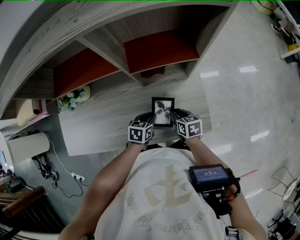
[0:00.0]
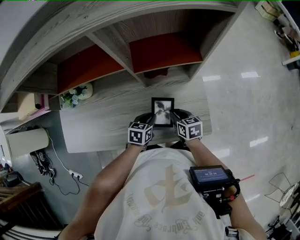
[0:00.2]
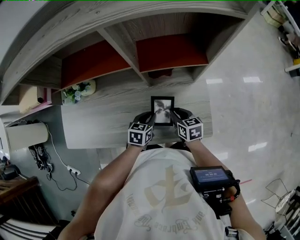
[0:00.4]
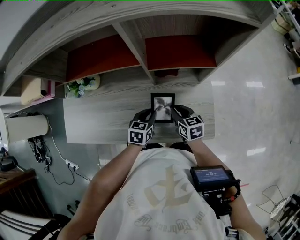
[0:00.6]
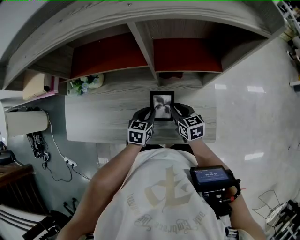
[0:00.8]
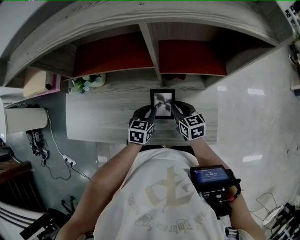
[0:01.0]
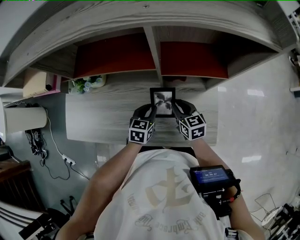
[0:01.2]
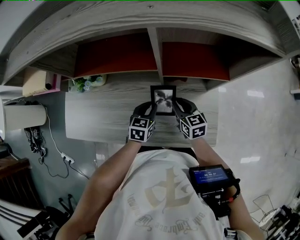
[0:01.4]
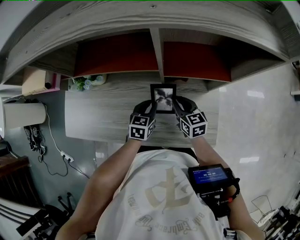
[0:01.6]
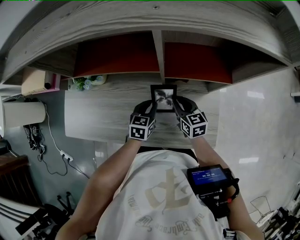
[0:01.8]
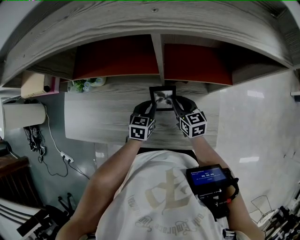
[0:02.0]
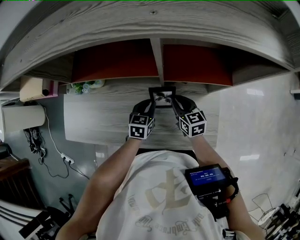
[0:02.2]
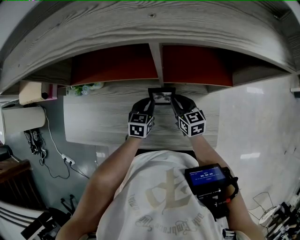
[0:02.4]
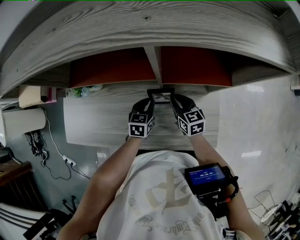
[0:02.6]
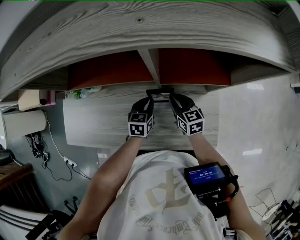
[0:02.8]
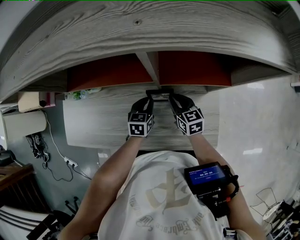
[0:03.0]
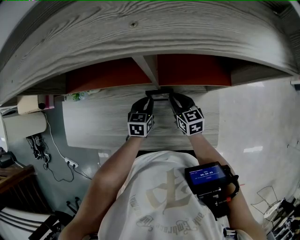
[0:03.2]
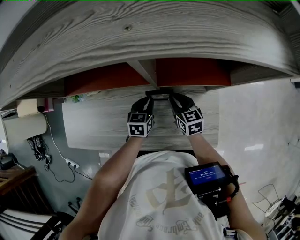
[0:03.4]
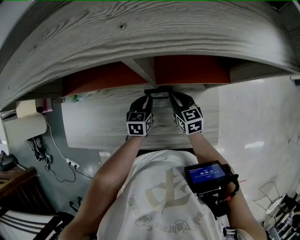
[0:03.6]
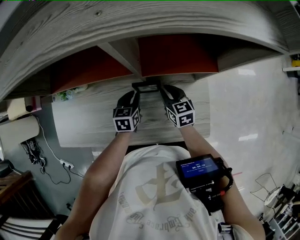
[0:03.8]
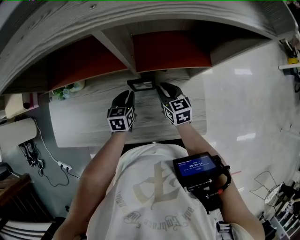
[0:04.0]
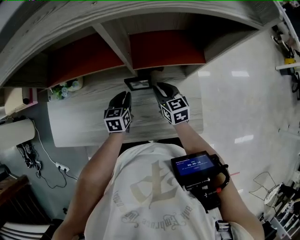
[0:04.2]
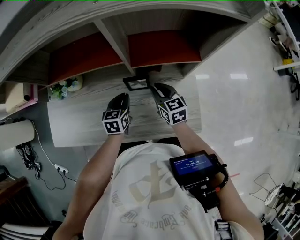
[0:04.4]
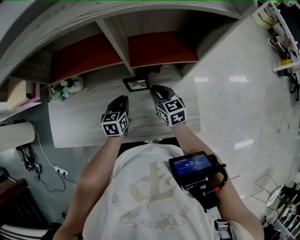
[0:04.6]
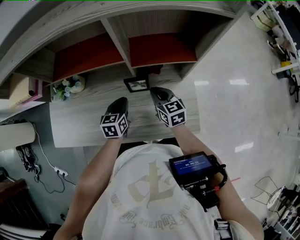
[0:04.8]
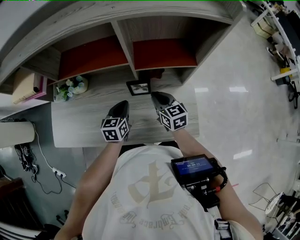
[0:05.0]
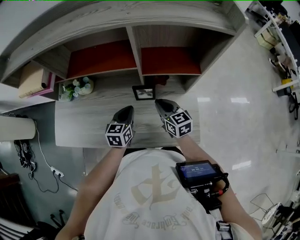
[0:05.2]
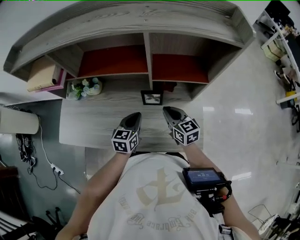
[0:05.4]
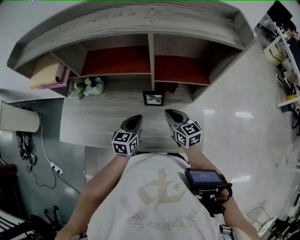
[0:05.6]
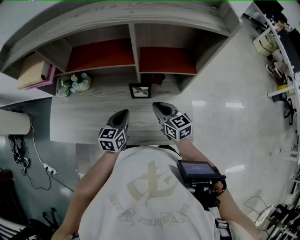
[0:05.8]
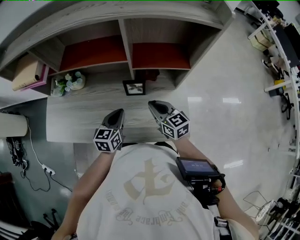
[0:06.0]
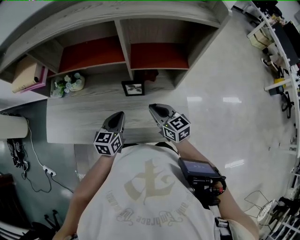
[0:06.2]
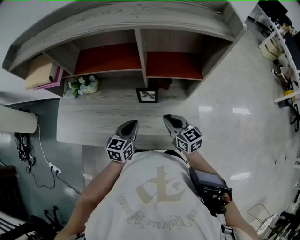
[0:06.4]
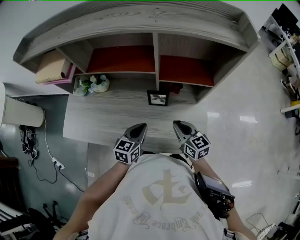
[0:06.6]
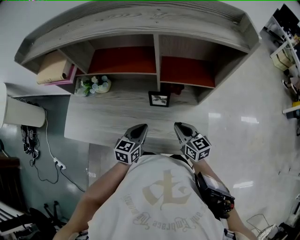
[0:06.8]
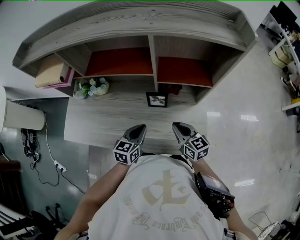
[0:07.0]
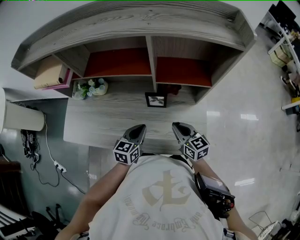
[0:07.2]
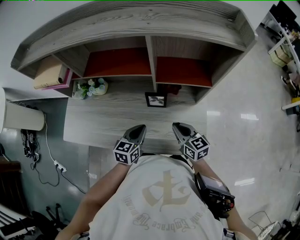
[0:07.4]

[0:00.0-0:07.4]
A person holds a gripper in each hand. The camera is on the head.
0:00.0 to 0:01.4: Both grippers travel together forward, to the left and upward, about 15 cm. The left gripper swivels about 20 degrees. The right gripper turns by about 30 degrees.
0:01.4 to 0:03.0: The left gripper is displaced forward by about 5 cm.
0:03.0 to 0:04.4: The grippers stay close to where they were, moving slightly.
0:04.4 to 0:06.0: The left gripper shifts about 10 cm backward and upward. The right gripper moves backward, upward and to the left, roughly 10 cm.
0:06.0 to 0:07.4: The grippers stay close to where they were, moving slightly.

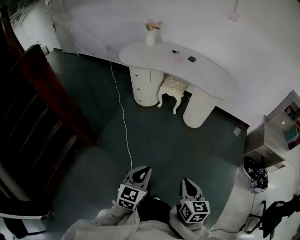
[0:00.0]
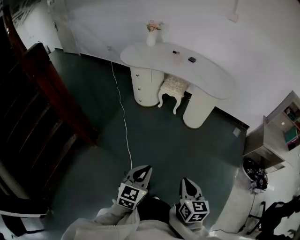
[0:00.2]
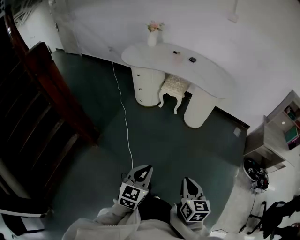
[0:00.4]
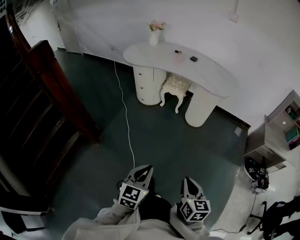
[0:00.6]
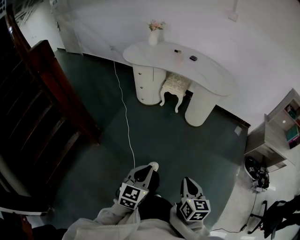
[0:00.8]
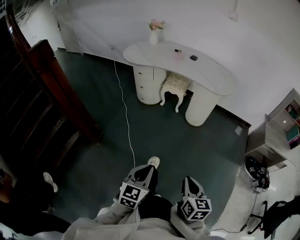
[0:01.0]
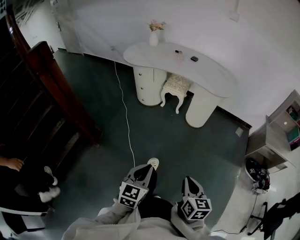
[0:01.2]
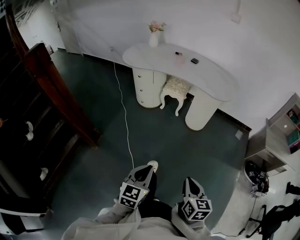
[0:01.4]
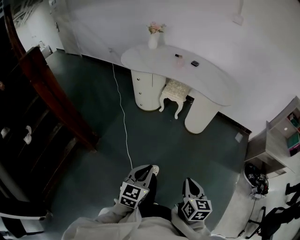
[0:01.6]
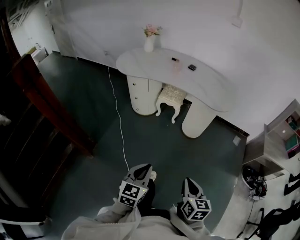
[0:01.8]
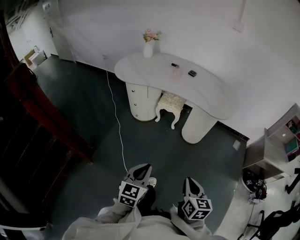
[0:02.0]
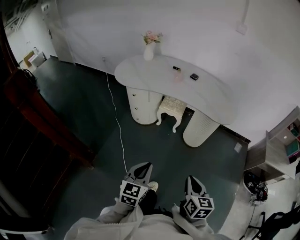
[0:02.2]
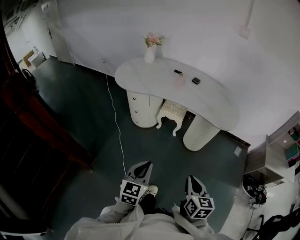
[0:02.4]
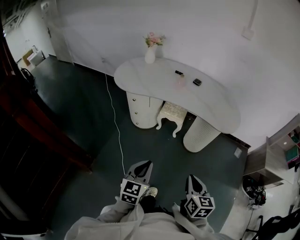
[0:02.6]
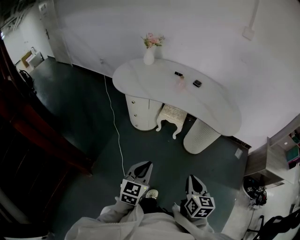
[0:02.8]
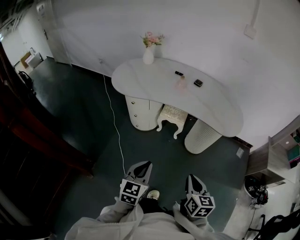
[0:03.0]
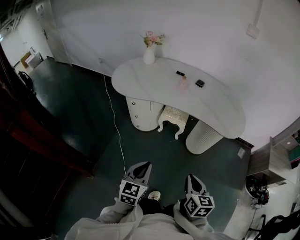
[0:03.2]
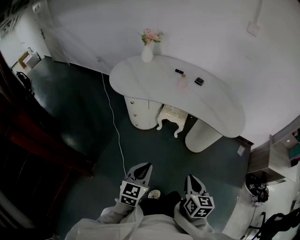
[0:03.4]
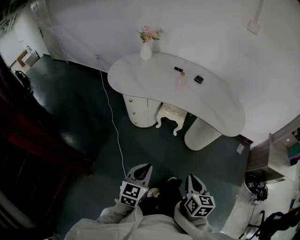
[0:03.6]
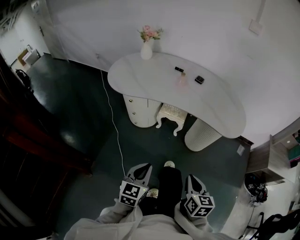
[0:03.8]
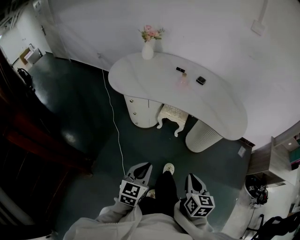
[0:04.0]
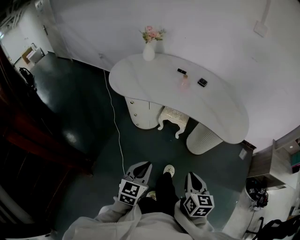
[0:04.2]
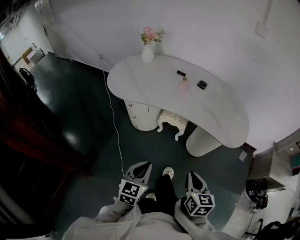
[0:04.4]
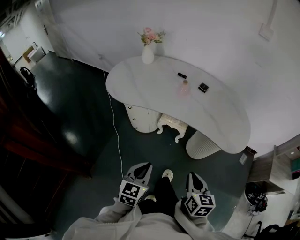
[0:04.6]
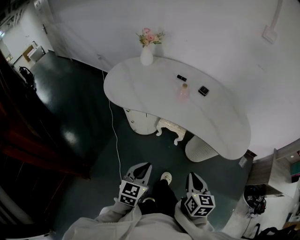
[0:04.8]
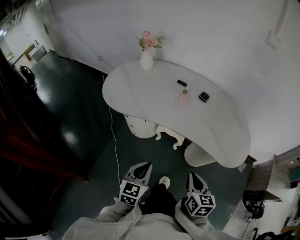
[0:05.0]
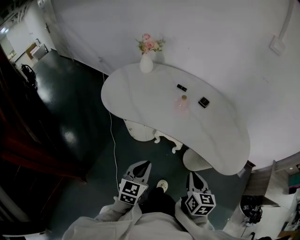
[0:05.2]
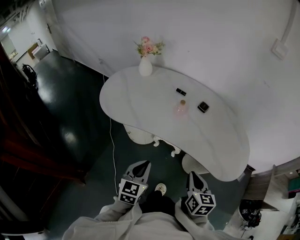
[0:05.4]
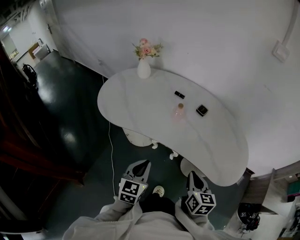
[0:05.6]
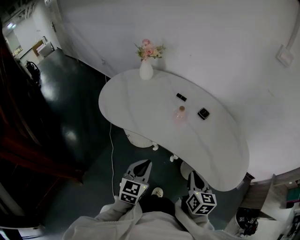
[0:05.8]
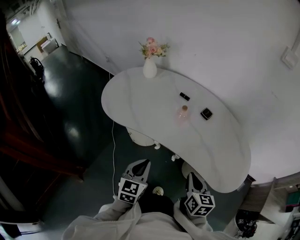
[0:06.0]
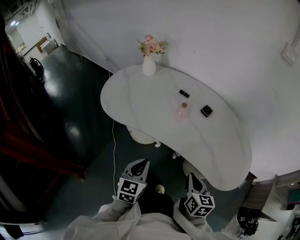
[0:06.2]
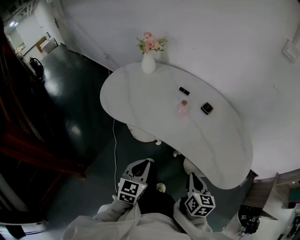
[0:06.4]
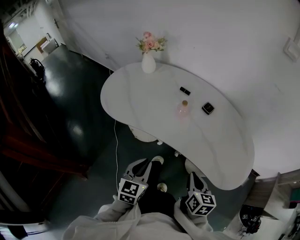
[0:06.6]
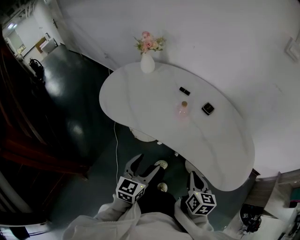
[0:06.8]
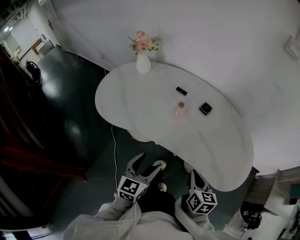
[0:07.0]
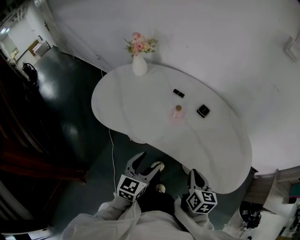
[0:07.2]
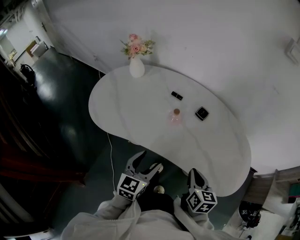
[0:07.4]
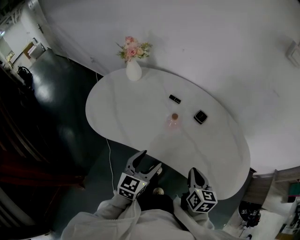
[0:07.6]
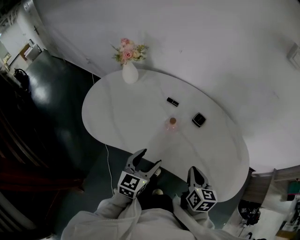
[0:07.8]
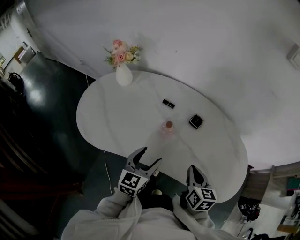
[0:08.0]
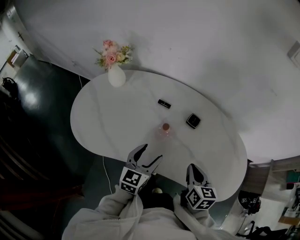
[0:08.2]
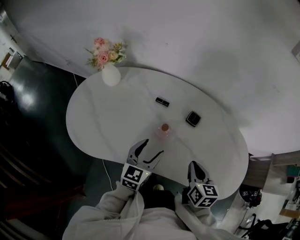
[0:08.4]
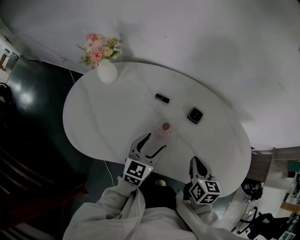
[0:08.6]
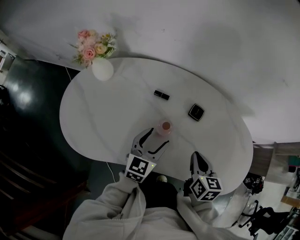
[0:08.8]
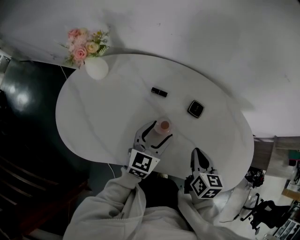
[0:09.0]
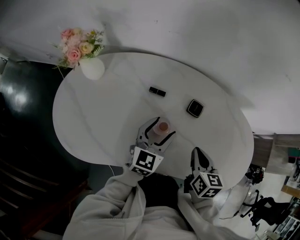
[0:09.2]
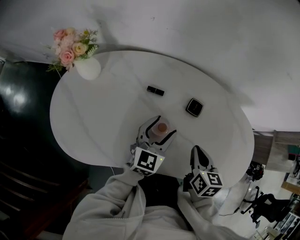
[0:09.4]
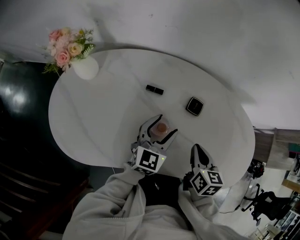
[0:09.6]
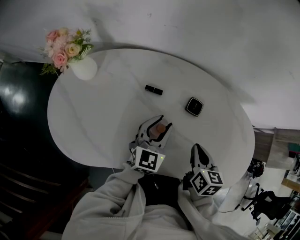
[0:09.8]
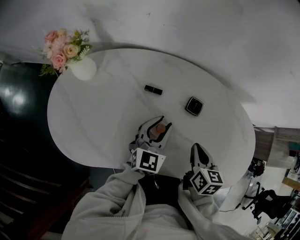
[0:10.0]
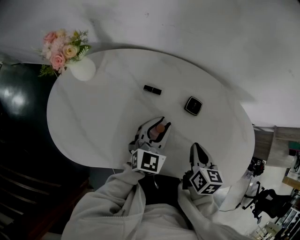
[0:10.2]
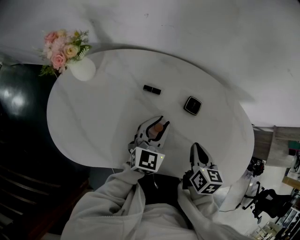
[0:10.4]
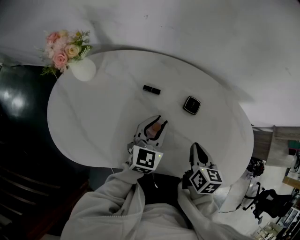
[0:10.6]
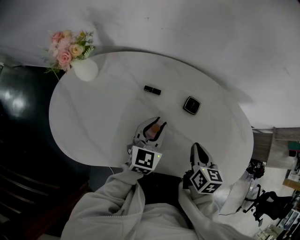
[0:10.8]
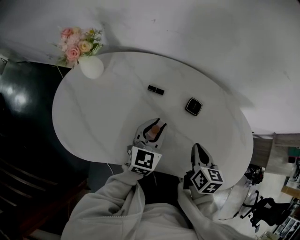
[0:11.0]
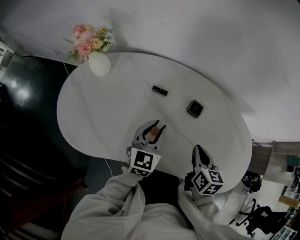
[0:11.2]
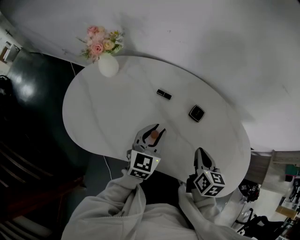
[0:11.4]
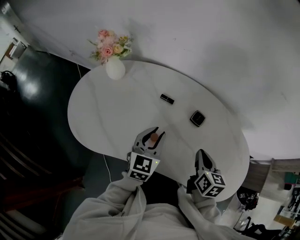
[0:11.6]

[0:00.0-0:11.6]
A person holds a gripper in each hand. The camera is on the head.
0:00.0 to 0:01.4: The grippers make only small movements.
0:01.4 to 0:02.8: The grippers both shift forward by roughly 30 cm.
0:02.8 to 0:04.4: Both grippers travel together forward, approximately 10 cm.
0:04.4 to 0:05.8: The grippers both shift forward by approximately 25 cm.
0:05.8 to 0:07.2: The left gripper is displaced forward by some 5 cm, and opens.
0:07.2 to 0:08.8: The two grippers go approximately 20 cm forward.
0:08.8 to 0:10.2: The left gripper moves forward, about 5 cm, and closes.
0:10.2 to 0:11.6: The left gripper travels backward and upward by approximately 10 cm.

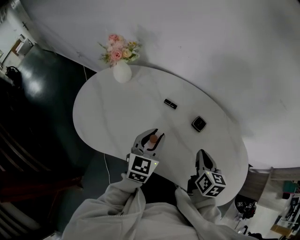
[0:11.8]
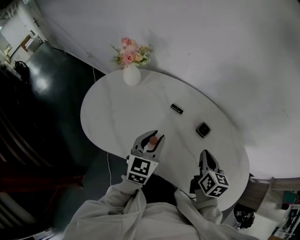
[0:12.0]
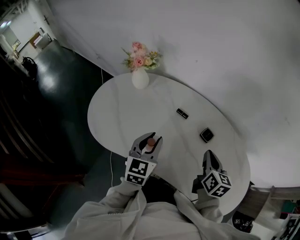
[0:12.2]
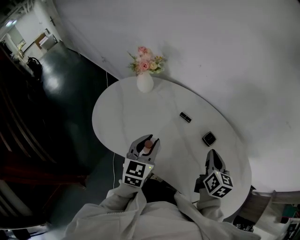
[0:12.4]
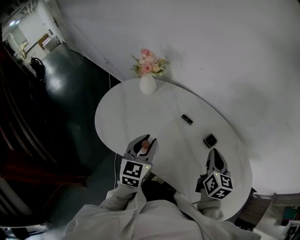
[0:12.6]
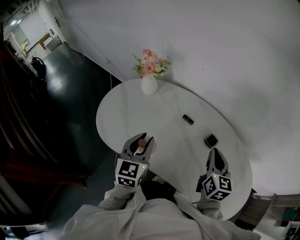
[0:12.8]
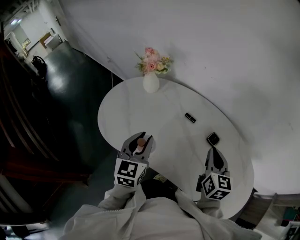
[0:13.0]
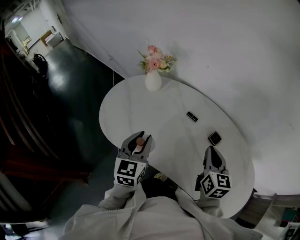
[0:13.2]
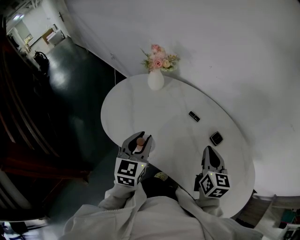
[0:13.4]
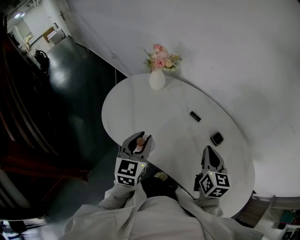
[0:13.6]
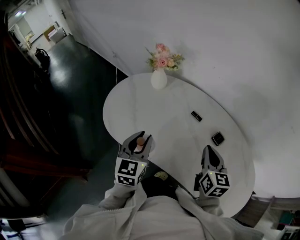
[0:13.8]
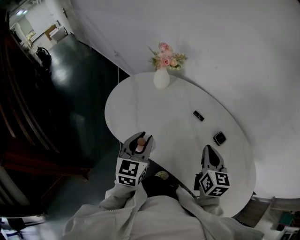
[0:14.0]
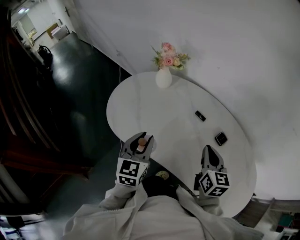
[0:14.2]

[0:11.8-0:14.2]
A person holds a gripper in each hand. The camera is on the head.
0:11.8 to 0:13.0: The left gripper is displaced to the left and upward by approximately 15 cm; the right gripper travels upward by some 10 cm, and turns by roughly 20 degrees.
0:13.0 to 0:14.2: The left gripper shifts by some 5 cm, while the right gripper travels to the left by roughly 5 cm.

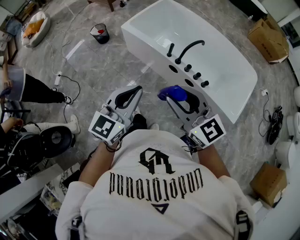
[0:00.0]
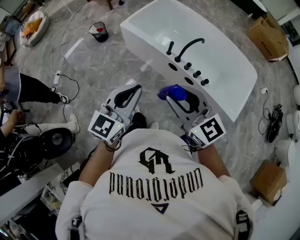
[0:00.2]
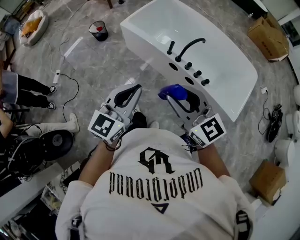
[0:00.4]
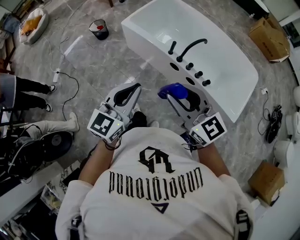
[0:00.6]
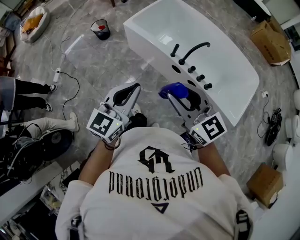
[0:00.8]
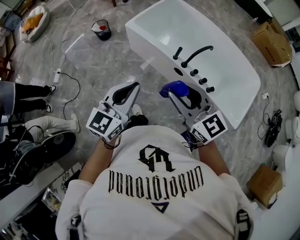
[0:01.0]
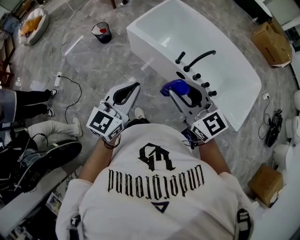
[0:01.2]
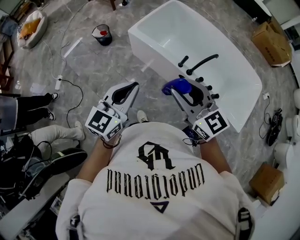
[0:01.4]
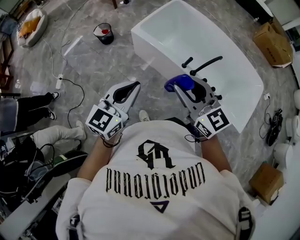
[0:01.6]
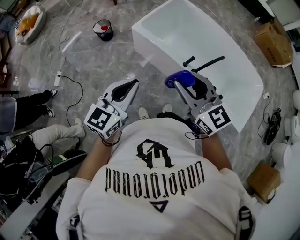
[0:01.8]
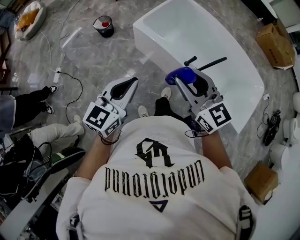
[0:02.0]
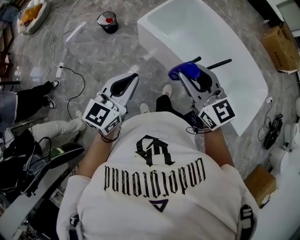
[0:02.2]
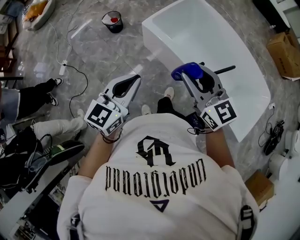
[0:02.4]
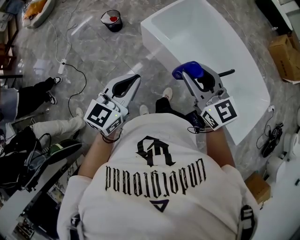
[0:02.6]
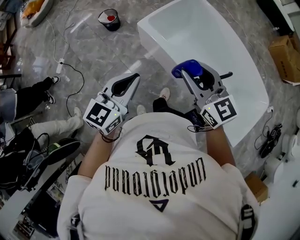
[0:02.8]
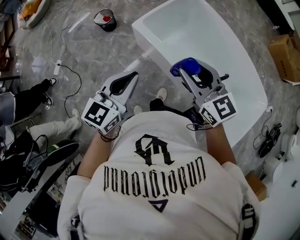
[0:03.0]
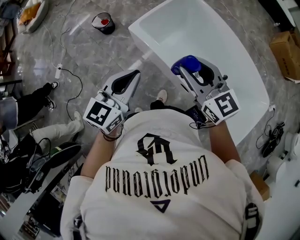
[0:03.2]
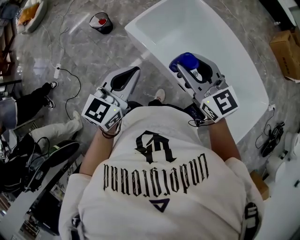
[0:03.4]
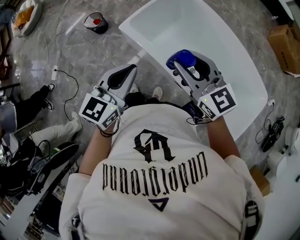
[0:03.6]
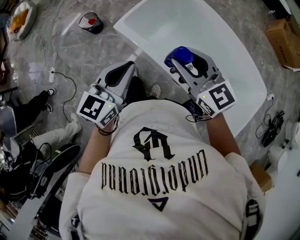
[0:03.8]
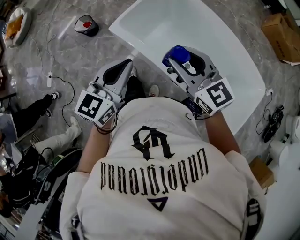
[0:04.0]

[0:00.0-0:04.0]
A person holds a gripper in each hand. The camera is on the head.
0:00.0 to 0:01.4: Both grippers travel together forward and to the left, some 20 cm.
0:01.4 to 0:02.6: Both grippers move forward, approximately 15 cm.
0:02.6 to 0:04.0: Both grippers move forward and to the right, about 20 cm.
